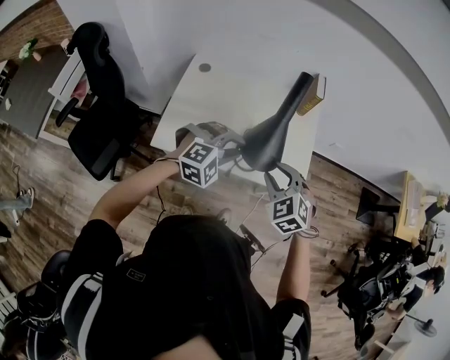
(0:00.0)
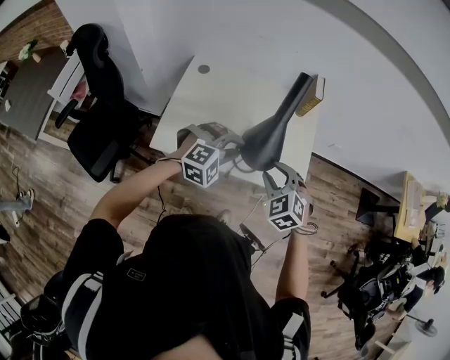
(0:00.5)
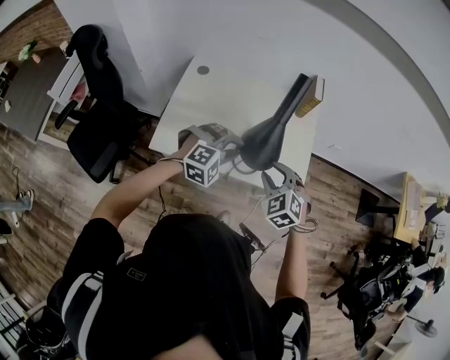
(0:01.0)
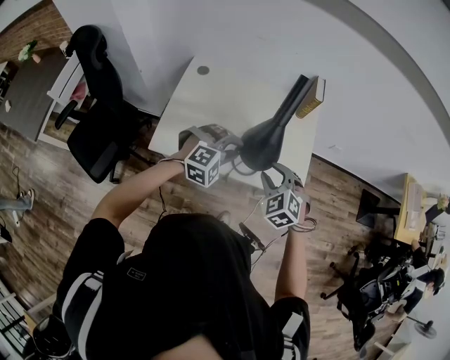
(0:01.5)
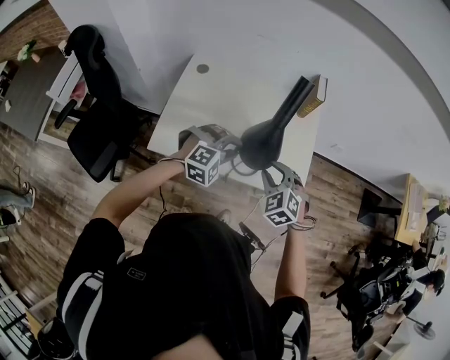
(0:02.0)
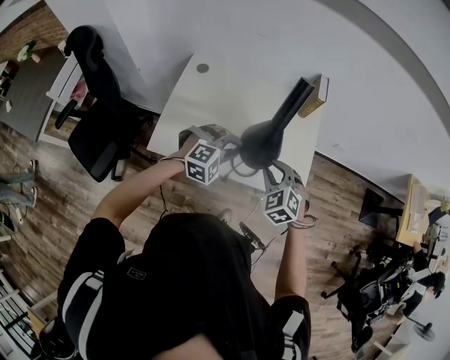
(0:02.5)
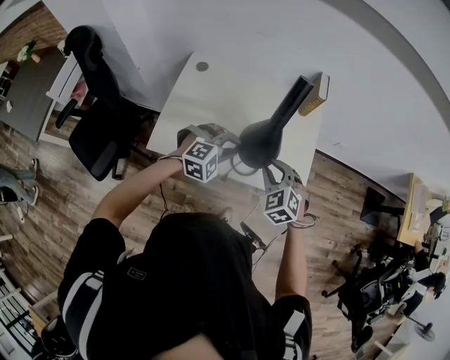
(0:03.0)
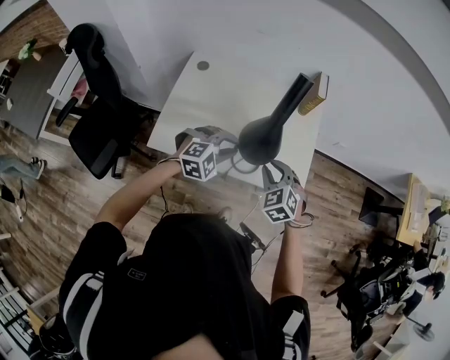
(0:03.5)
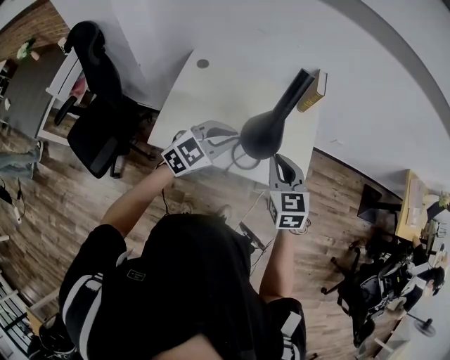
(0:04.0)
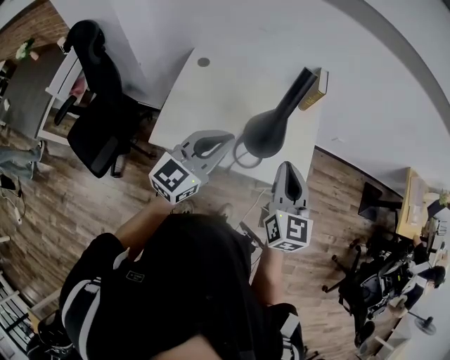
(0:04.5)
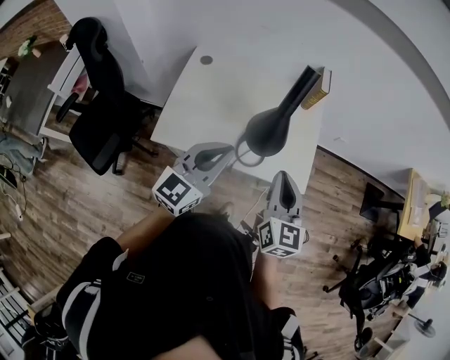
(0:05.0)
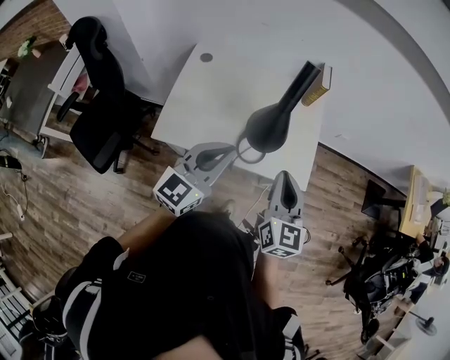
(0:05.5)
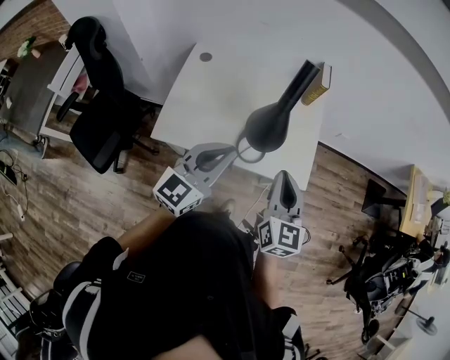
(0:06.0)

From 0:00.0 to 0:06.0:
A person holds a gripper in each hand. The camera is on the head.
From 0:00.0 to 0:02.0: Both grippers move downward, about 5 cm.
From 0:02.0 to 0:04.0: Both grippers move upward, approximately 10 cm. The right gripper swivels some 40 degrees, and closes up; the left gripper twists approximately 40 degrees counterclockwise, seen from behind.
From 0:04.0 to 0:06.0: The left gripper is displaced backward and upward by some 10 cm, and swivels approximately 30 degrees. Meanwhile the right gripper travels backward by roughly 5 cm, and turns by about 30 degrees.

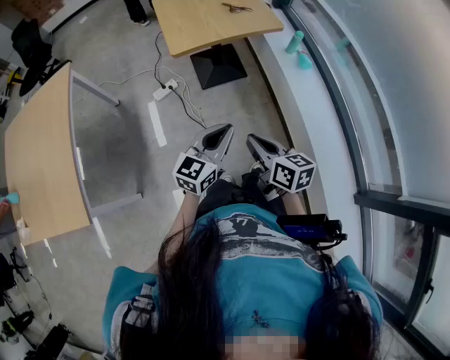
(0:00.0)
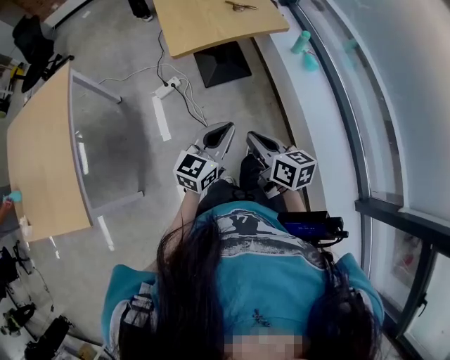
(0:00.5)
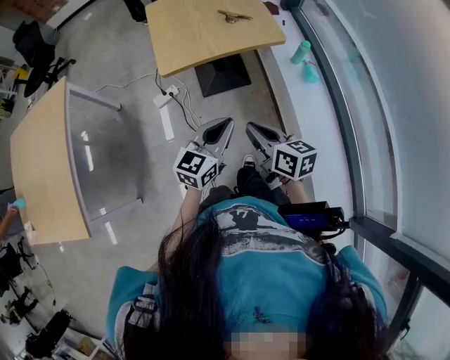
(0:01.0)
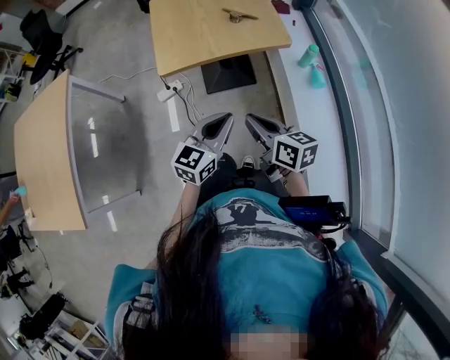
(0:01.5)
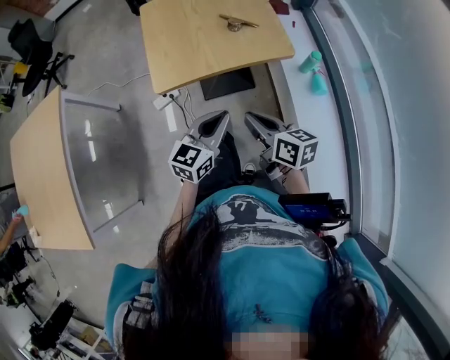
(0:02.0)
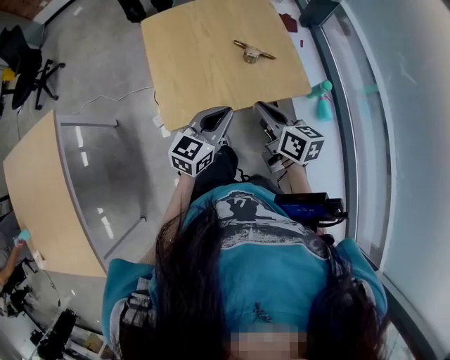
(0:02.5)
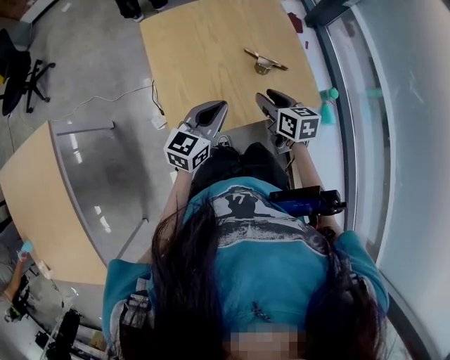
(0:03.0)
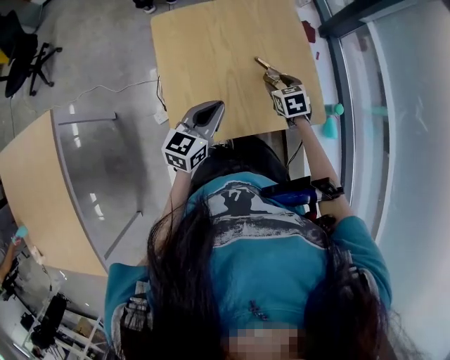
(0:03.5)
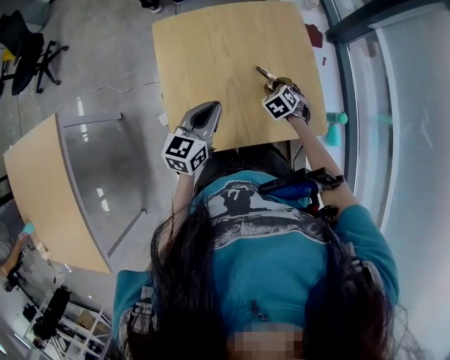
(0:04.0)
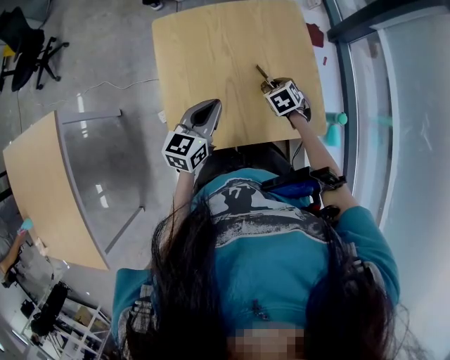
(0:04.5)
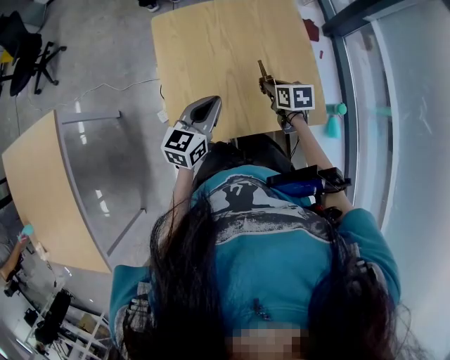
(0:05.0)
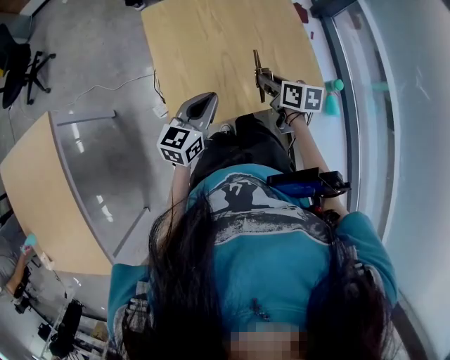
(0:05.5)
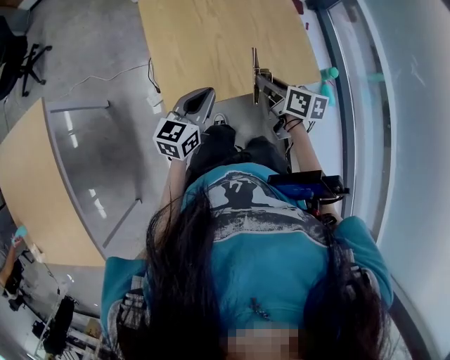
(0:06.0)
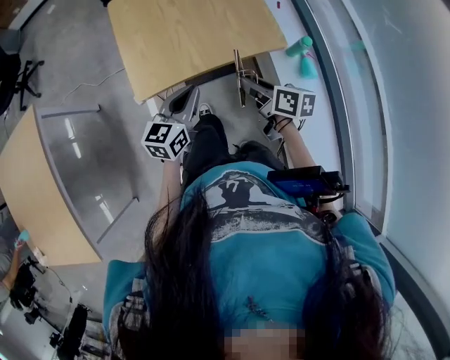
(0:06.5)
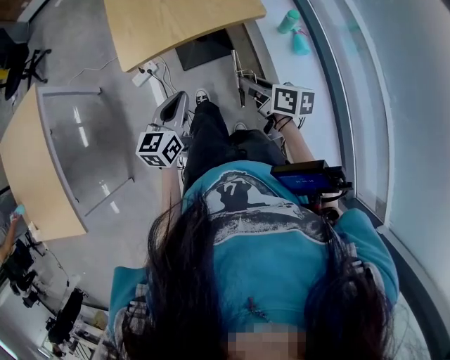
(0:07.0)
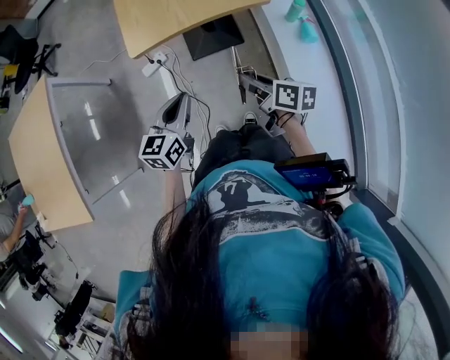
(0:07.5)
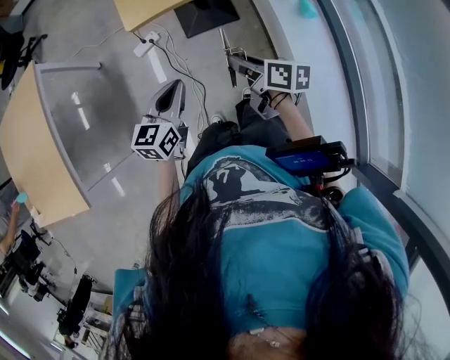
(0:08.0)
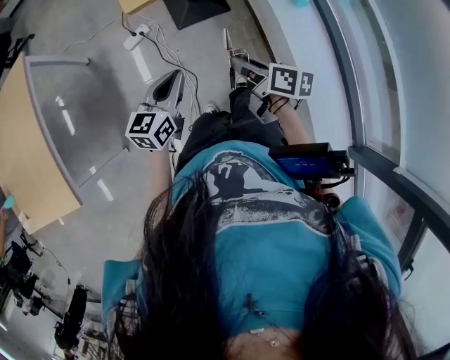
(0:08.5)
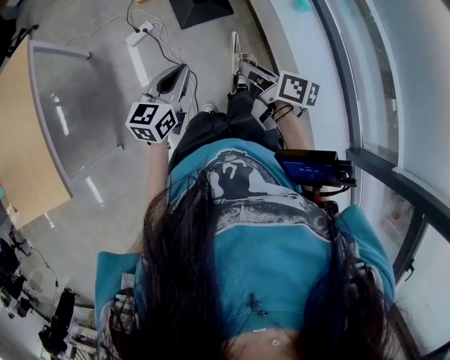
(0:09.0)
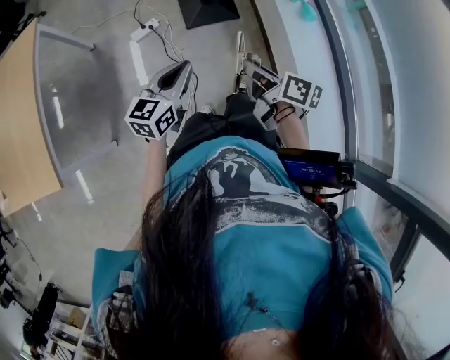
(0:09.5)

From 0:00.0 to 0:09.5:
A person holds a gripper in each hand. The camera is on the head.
From 0:00.0 to 0:02.0: Both grippers move forward, some 35 cm.
From 0:02.0 to 0:04.0: The left gripper shifts about 40 cm forward and to the left, while the right gripper heads forward and downward, covering about 50 cm, tilts its fingers roughly 50 degrees downward, and opens its fingers.
From 0:04.0 to 0:05.5: The right gripper moves backward and upward, approximately 20 cm, rolls clockwise, seen from behind, by some 60 degrees, and closes up, while the left gripper travels backward by approximately 10 cm.
From 0:05.5 to 0:07.5: Both grippers move backward, about 40 cm.
From 0:07.5 to 0:09.5: The grippers both shift backward and to the left by about 15 cm.

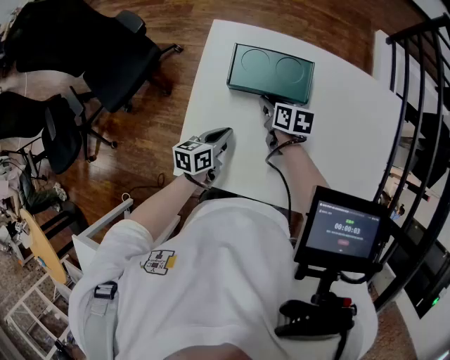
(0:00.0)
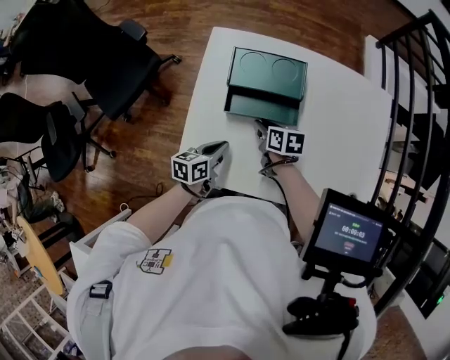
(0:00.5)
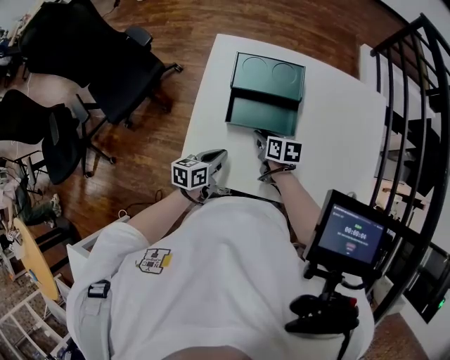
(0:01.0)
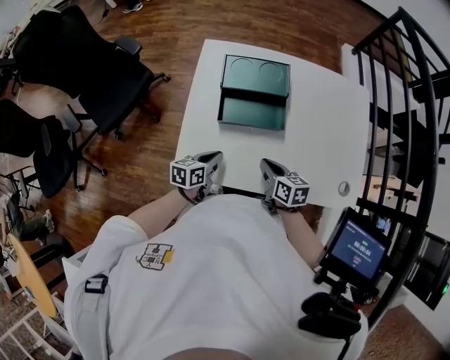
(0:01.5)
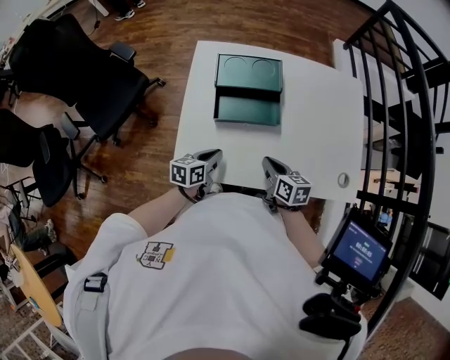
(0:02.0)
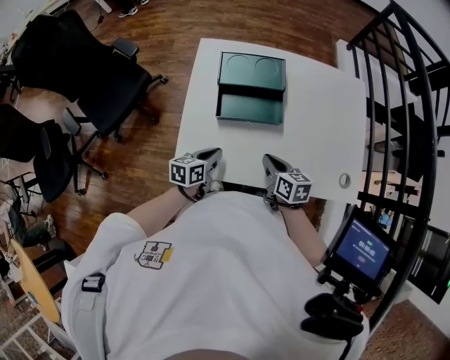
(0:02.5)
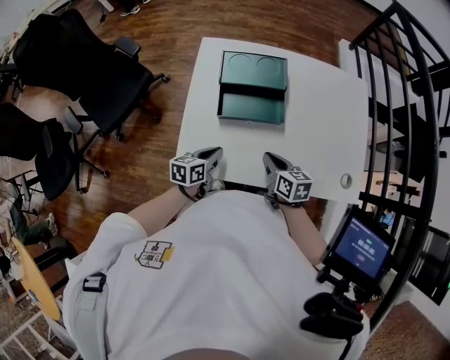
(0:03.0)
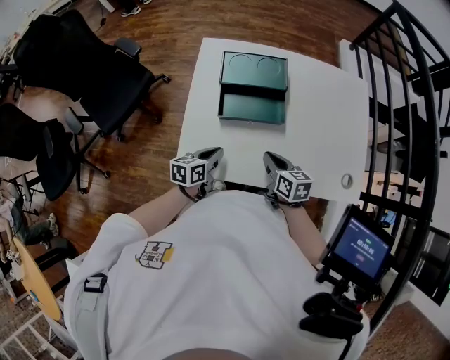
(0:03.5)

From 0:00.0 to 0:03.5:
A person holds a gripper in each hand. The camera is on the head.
From 0:00.0 to 0:02.0: The right gripper moves backward, about 25 cm. The left gripper goes about 10 cm backward.
From 0:02.0 to 0:03.5: Both grippers stay about where they are.

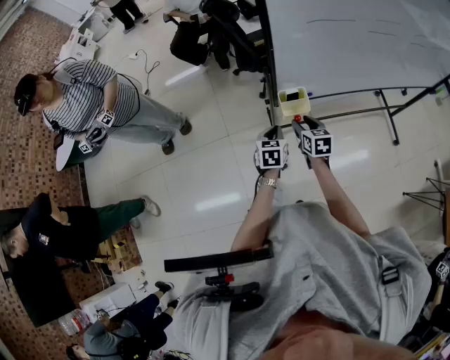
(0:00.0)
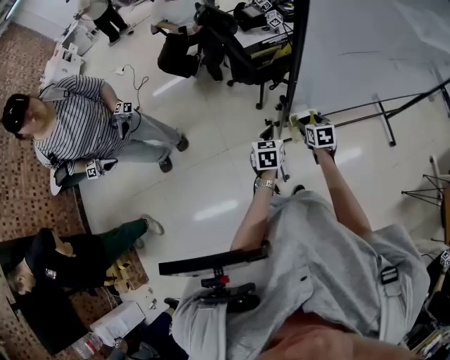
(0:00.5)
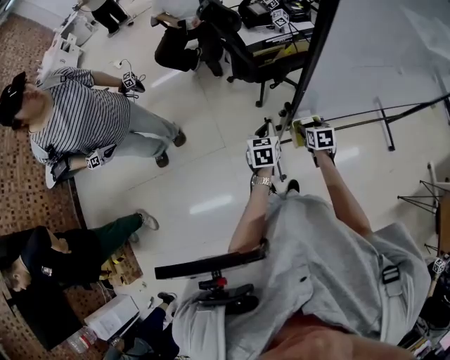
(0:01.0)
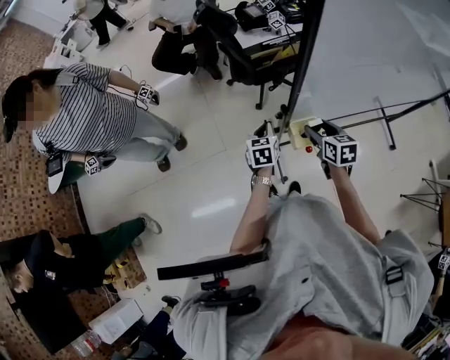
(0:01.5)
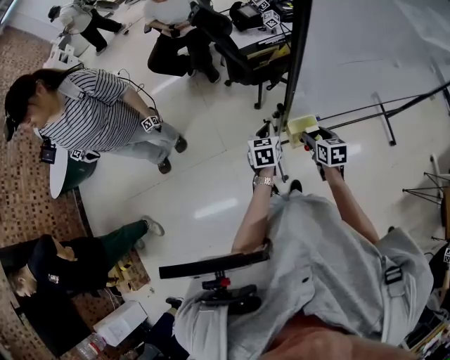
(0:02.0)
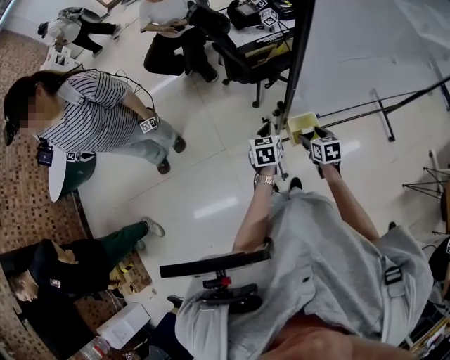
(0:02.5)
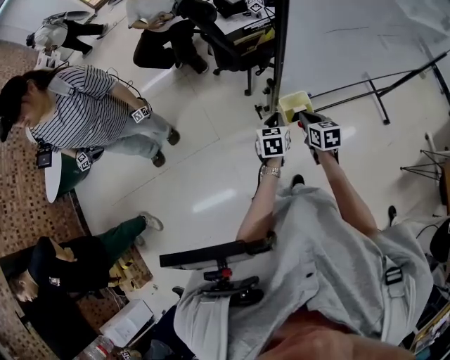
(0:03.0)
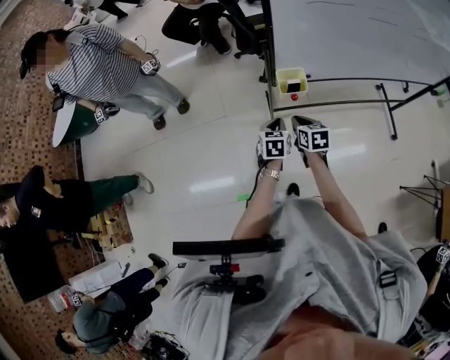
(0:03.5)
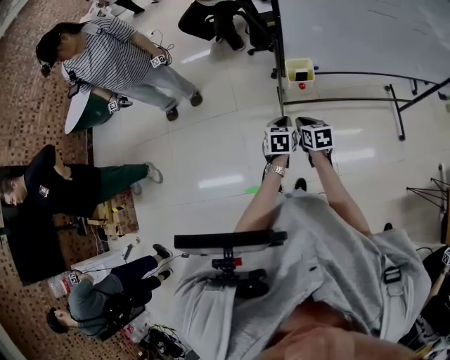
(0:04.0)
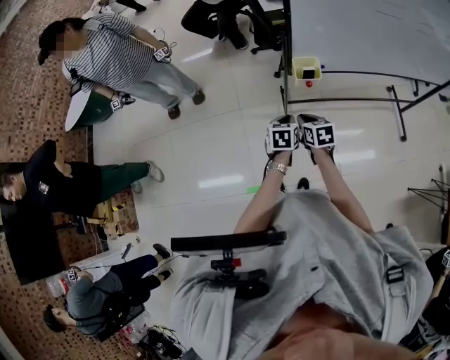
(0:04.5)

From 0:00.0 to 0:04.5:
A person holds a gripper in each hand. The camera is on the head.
From 0:00.0 to 0:02.0: The left gripper shifts about 15 cm forward, while the right gripper travels forward by roughly 10 cm.
From 0:02.0 to 0:04.5: Both grippers travel together backward, some 30 cm. The right gripper closes.

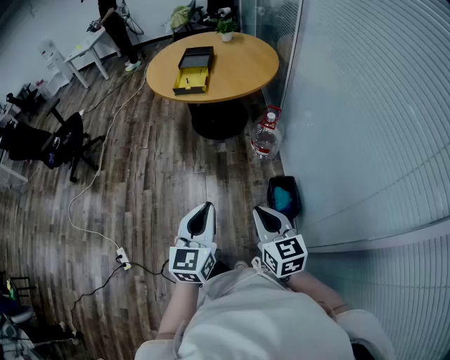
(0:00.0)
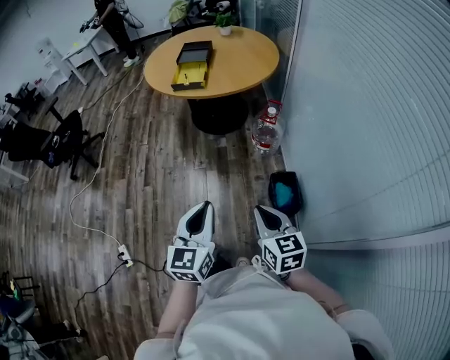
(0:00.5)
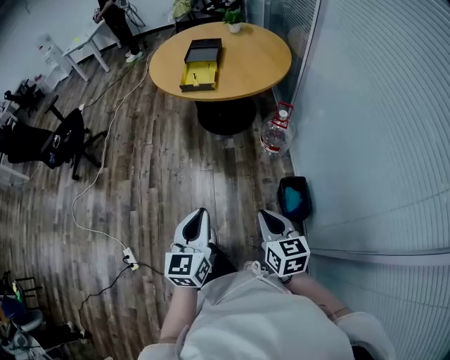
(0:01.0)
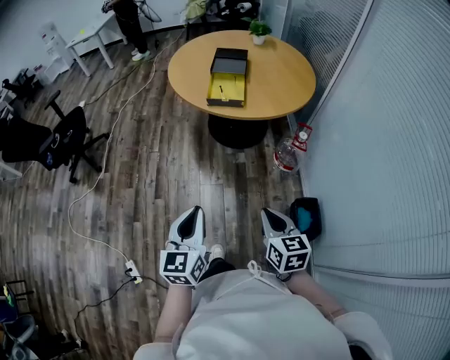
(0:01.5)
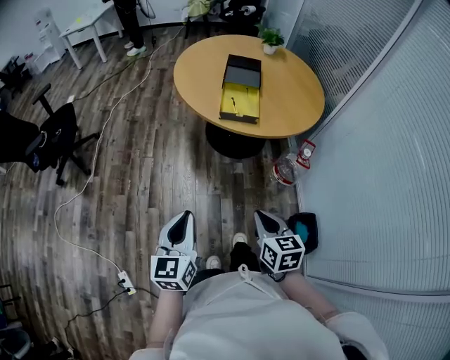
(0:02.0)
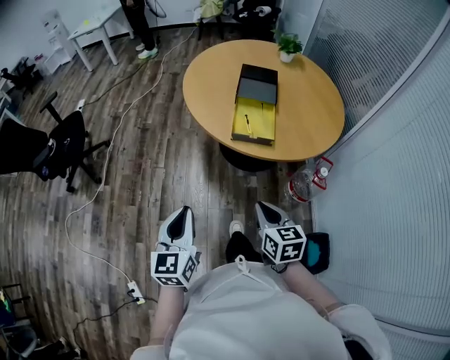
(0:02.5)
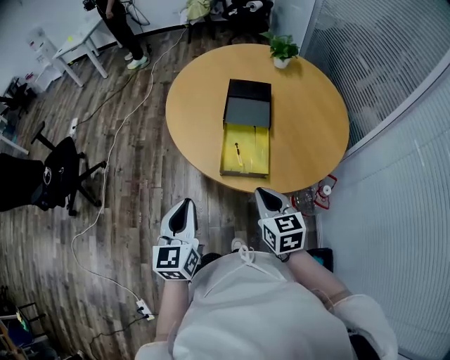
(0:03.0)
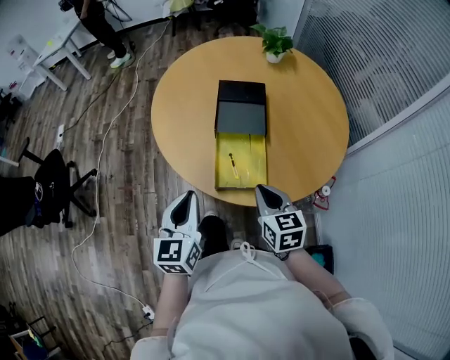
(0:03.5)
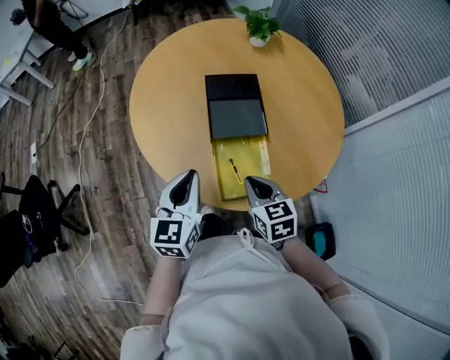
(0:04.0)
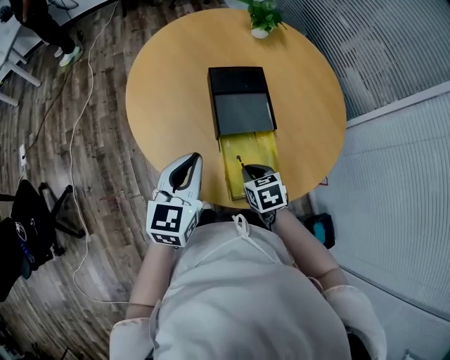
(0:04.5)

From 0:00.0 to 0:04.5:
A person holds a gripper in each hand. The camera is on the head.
From 0:00.0 to 0:02.0: Both grippers are carried to the left and forward, some 40 cm.
From 0:02.0 to 0:04.5: The pair of grippers is taken forward, some 60 cm. The right gripper changes its angle by about 30 degrees; the left gripper swivels roughly 30 degrees.
